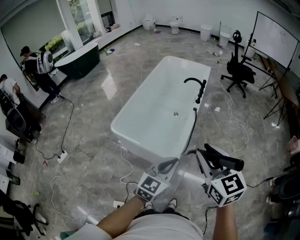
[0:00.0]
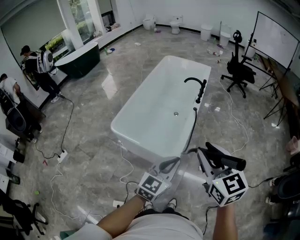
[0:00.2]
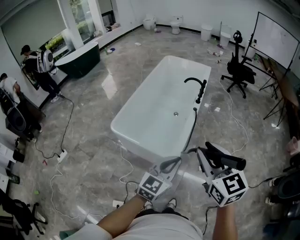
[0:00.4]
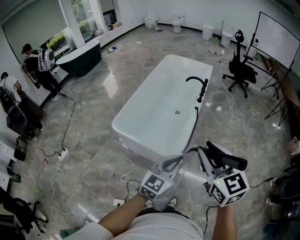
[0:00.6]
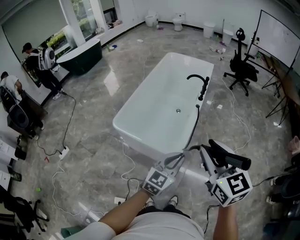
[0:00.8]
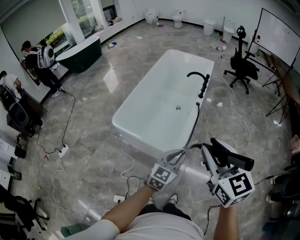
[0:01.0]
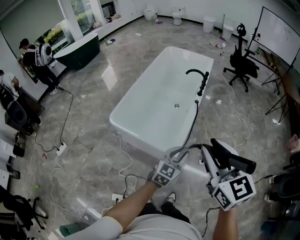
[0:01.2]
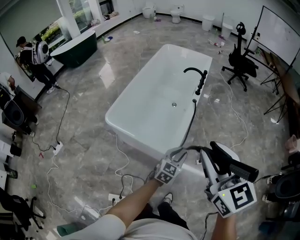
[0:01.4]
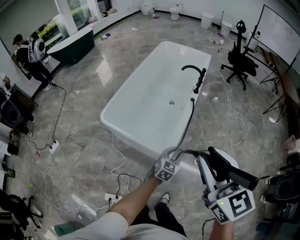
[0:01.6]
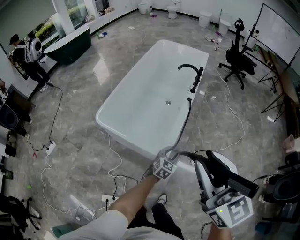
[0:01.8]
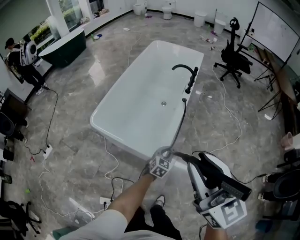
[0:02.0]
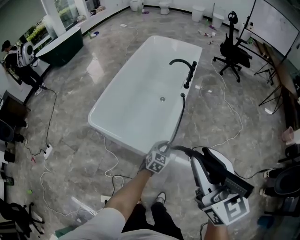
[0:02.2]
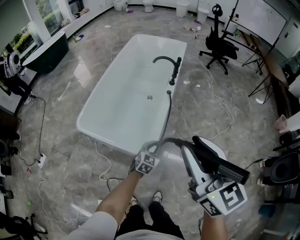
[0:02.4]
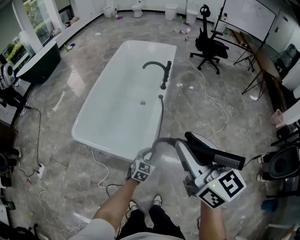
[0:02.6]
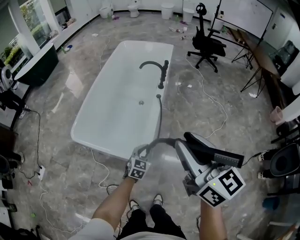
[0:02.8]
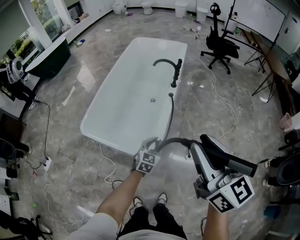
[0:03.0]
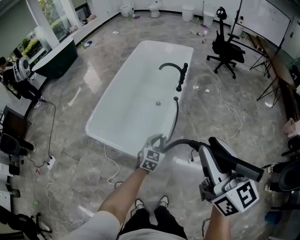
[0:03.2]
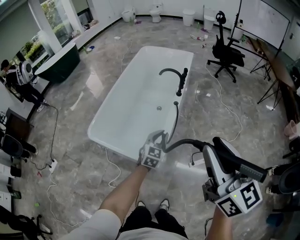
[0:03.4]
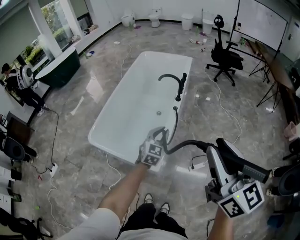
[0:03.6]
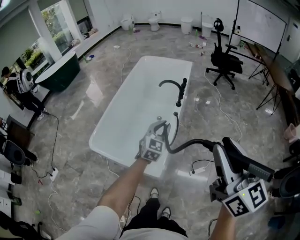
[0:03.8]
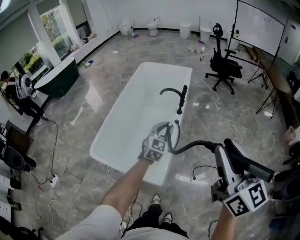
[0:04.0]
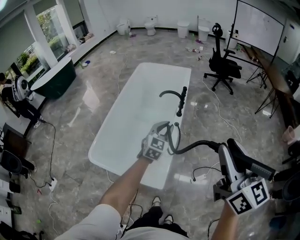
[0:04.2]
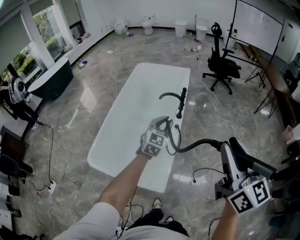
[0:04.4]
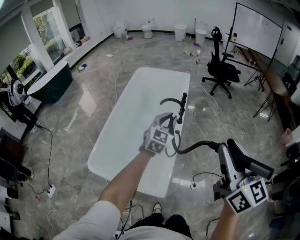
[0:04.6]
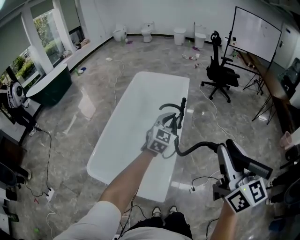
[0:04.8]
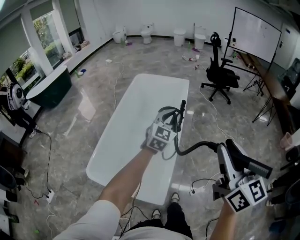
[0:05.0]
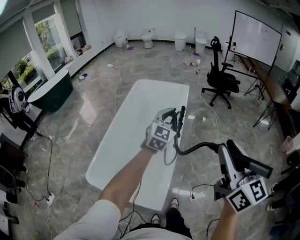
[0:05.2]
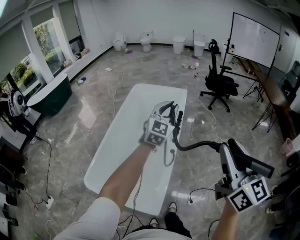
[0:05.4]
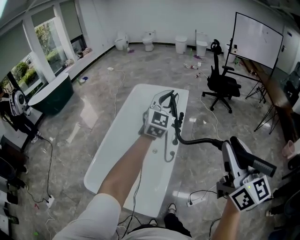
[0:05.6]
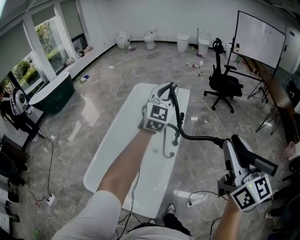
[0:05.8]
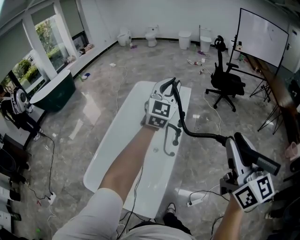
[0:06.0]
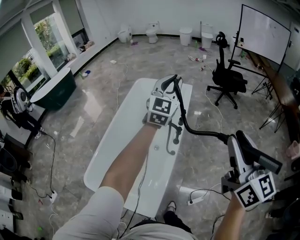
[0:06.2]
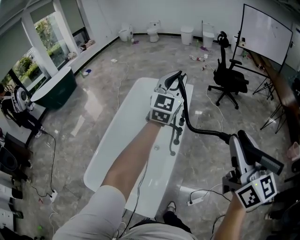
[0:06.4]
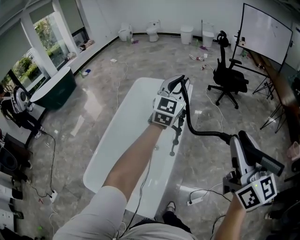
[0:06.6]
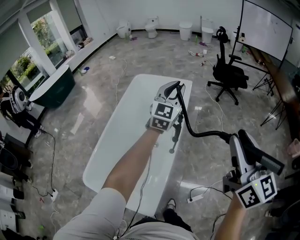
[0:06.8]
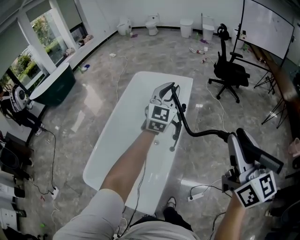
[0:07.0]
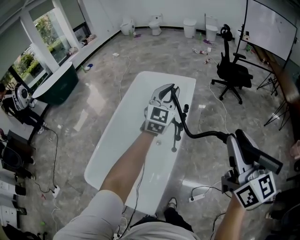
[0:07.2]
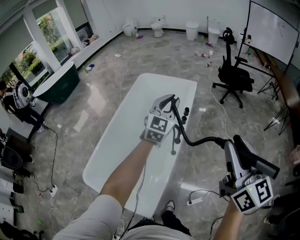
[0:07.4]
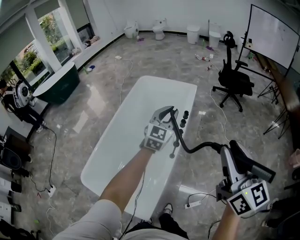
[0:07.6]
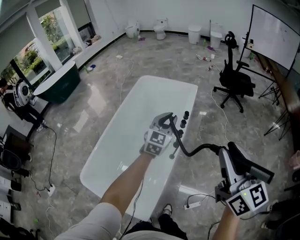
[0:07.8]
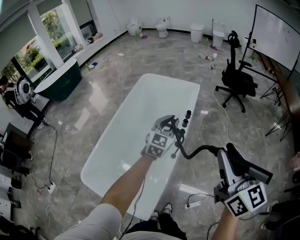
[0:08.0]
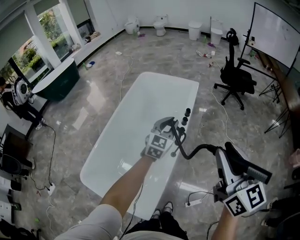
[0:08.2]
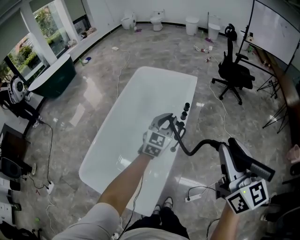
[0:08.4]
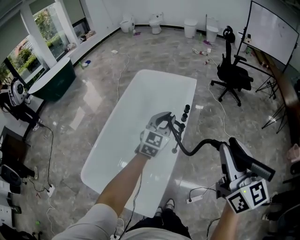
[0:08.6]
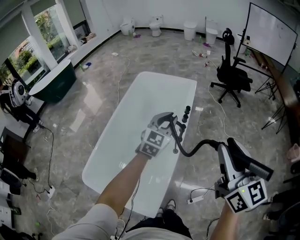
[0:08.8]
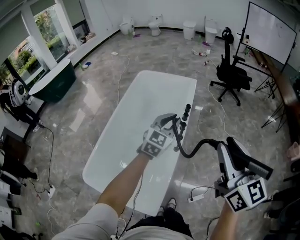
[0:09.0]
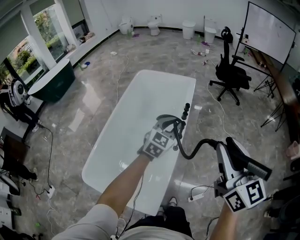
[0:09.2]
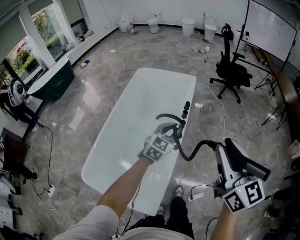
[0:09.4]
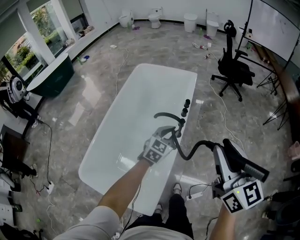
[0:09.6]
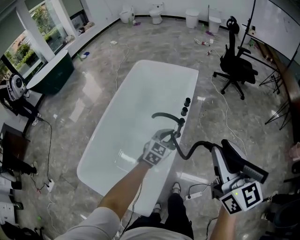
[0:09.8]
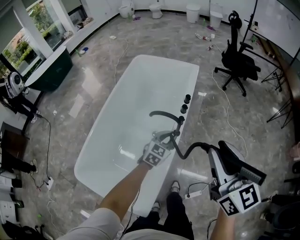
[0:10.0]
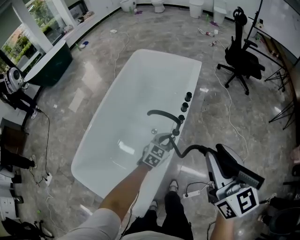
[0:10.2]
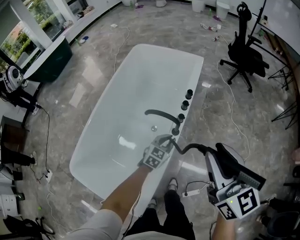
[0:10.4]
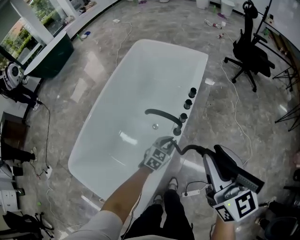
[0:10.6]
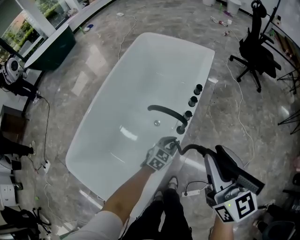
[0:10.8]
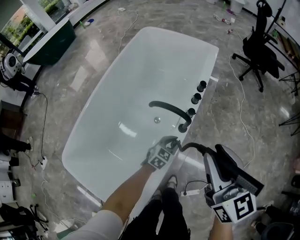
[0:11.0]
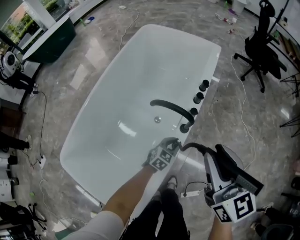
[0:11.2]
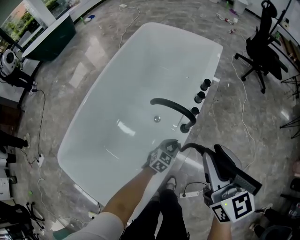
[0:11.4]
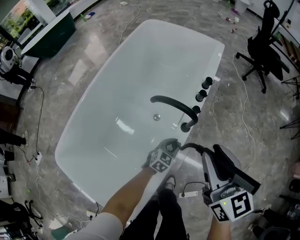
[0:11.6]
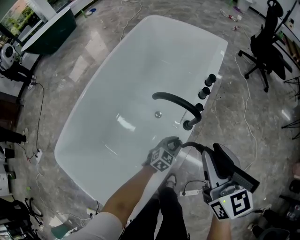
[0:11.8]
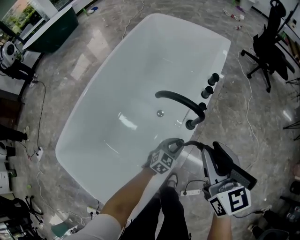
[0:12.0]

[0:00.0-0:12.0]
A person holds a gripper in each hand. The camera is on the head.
0:00.0 to 0:01.6: The left gripper heads downward and forward, covering some 25 cm, and opens up.
0:01.6 to 0:03.0: The left gripper moves forward, approximately 10 cm. Meanwhile the right gripper travels to the right and forward by roughly 10 cm.
0:03.0 to 0:04.4: The right gripper shifts about 15 cm forward and upward. The left gripper heads forward and upward, covering approximately 30 cm.
0:04.4 to 0:06.0: The right gripper shifts some 20 cm forward, while the left gripper shifts about 35 cm upward and forward, and swivels about 20 degrees.
0:06.0 to 0:07.6: The right gripper is displaced forward and downward by roughly 10 cm; the left gripper goes roughly 15 cm downward.
0:07.6 to 0:09.0: The right gripper travels to the left by some 5 cm. Meanwhile the left gripper travels backward by approximately 5 cm.
0:09.0 to 0:10.4: The right gripper moves forward and downward, some 20 cm; the left gripper moves downward, some 30 cm, and changes its angle by some 20 degrees.
0:10.4 to 0:12.0: The grippers both shift downward by roughly 20 cm.

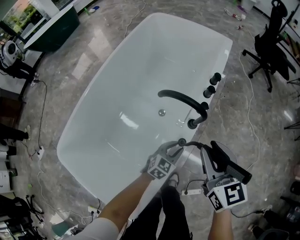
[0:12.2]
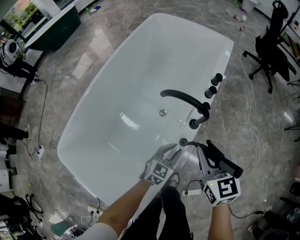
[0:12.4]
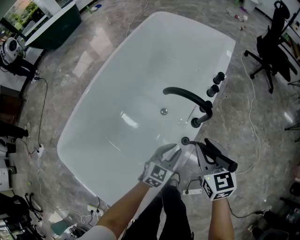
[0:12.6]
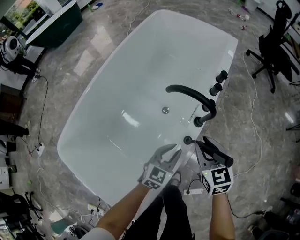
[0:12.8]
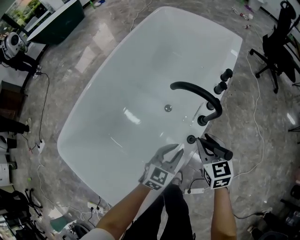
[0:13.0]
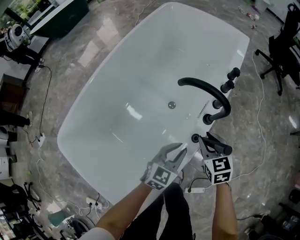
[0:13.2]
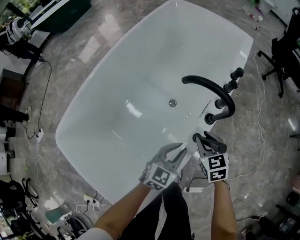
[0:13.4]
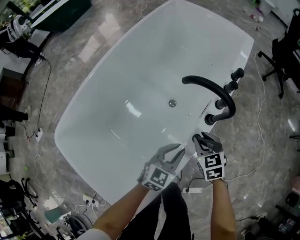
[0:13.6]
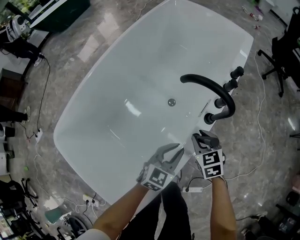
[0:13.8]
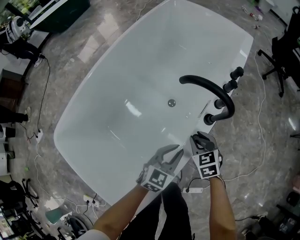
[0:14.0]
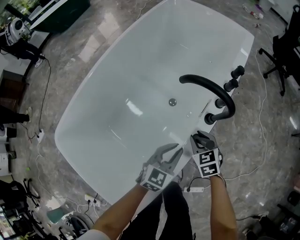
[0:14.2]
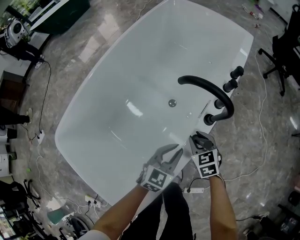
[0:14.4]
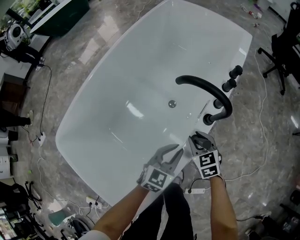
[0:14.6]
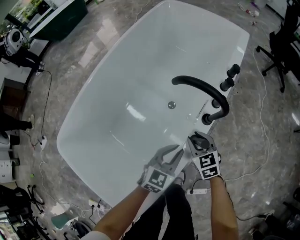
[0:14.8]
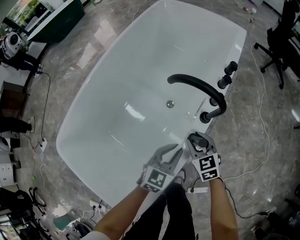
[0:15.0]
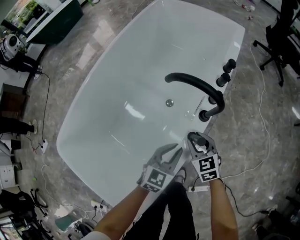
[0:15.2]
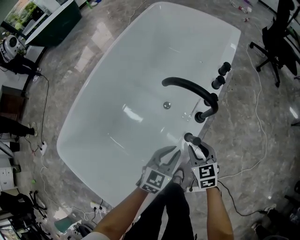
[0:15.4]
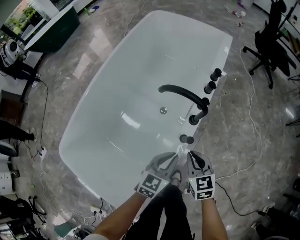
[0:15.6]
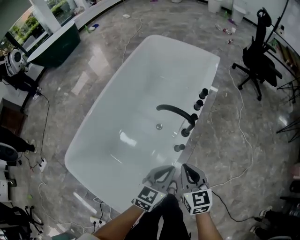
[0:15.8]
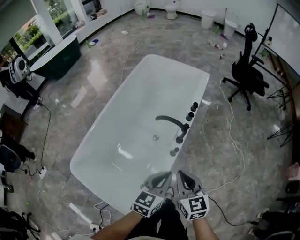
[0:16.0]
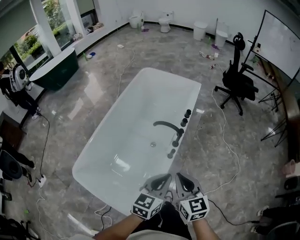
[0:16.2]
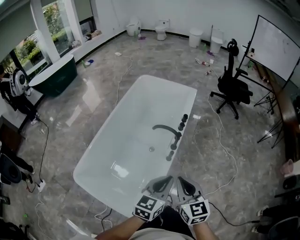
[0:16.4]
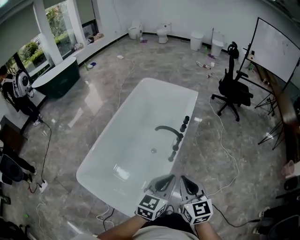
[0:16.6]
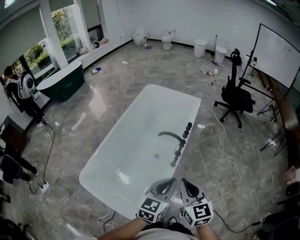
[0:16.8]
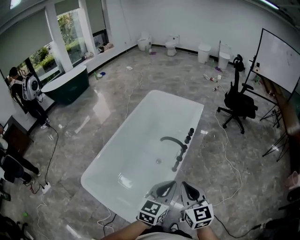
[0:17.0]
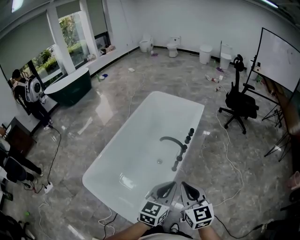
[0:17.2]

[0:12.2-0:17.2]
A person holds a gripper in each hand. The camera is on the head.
0:12.2 to 0:13.8: The left gripper travels to the left by approximately 5 cm. Meanwhile the right gripper shifts approximately 25 cm downward, and swivels about 30 degrees.
0:13.8 to 0:15.6: The left gripper shifts some 5 cm upward. The right gripper travels backward and upward by about 10 cm, and closes up.
0:15.6 to 0:17.2: The right gripper goes about 40 cm upward and backward, and turns by about 20 degrees, while the left gripper travels upward by roughly 35 cm.

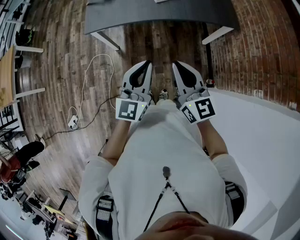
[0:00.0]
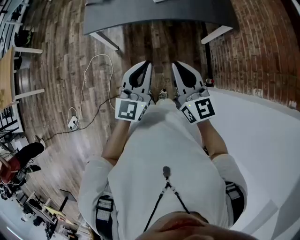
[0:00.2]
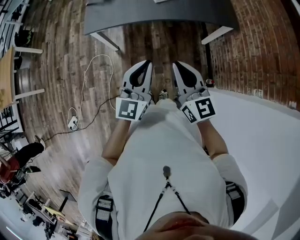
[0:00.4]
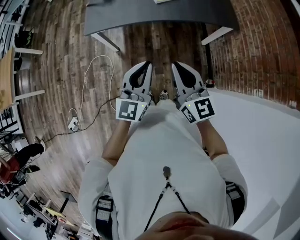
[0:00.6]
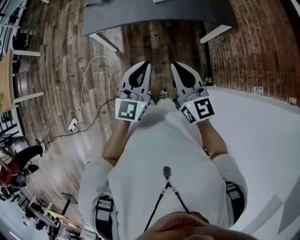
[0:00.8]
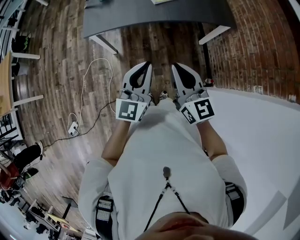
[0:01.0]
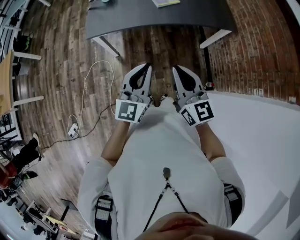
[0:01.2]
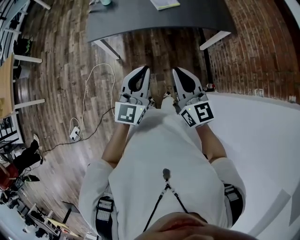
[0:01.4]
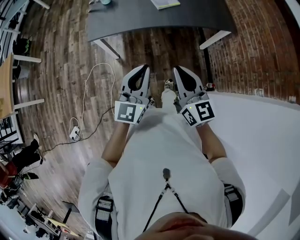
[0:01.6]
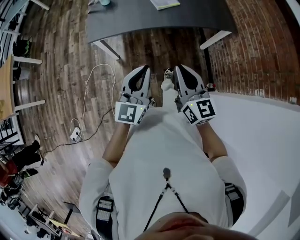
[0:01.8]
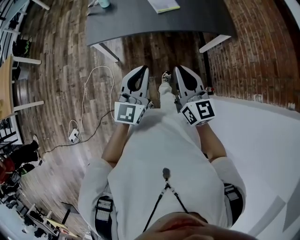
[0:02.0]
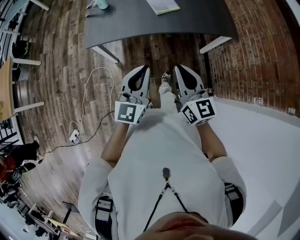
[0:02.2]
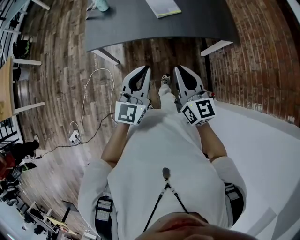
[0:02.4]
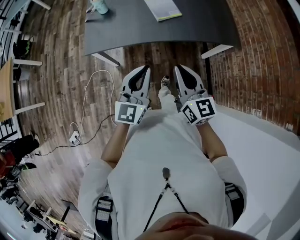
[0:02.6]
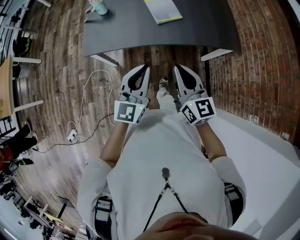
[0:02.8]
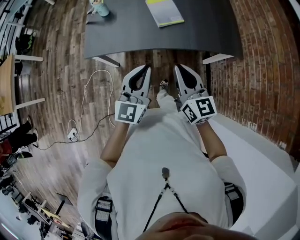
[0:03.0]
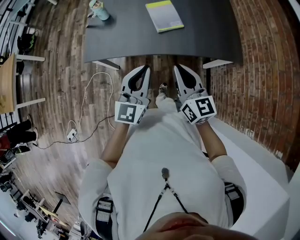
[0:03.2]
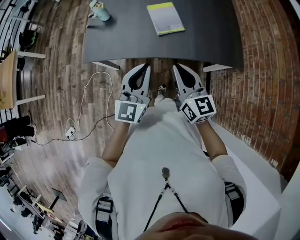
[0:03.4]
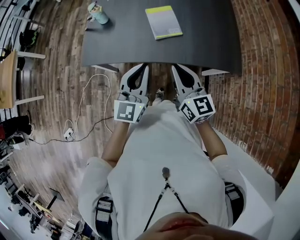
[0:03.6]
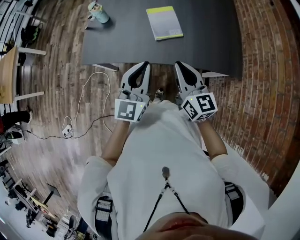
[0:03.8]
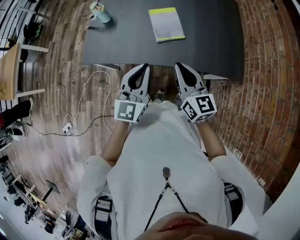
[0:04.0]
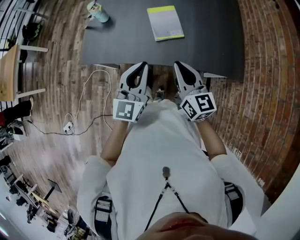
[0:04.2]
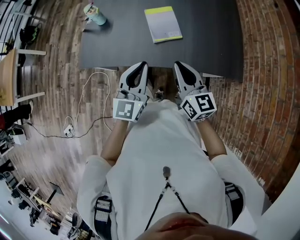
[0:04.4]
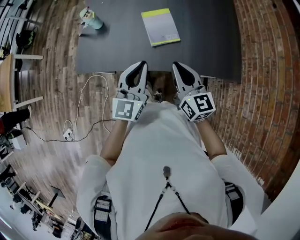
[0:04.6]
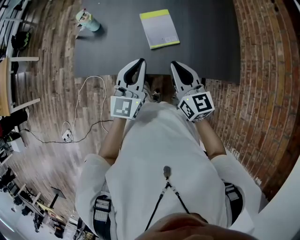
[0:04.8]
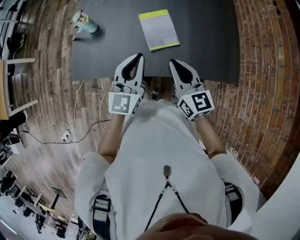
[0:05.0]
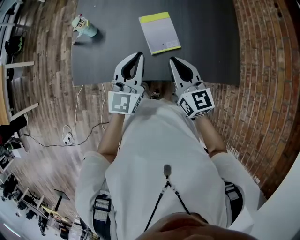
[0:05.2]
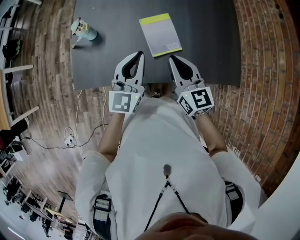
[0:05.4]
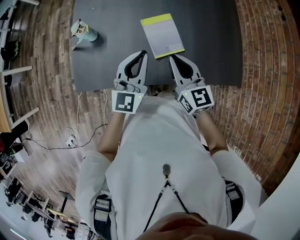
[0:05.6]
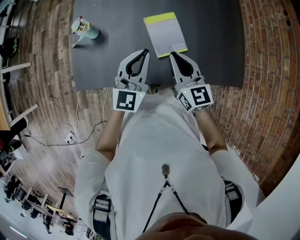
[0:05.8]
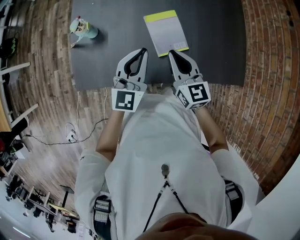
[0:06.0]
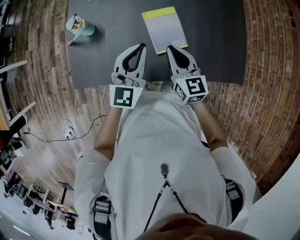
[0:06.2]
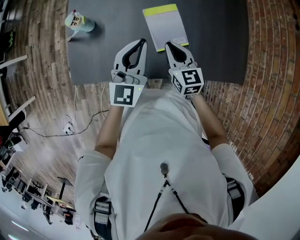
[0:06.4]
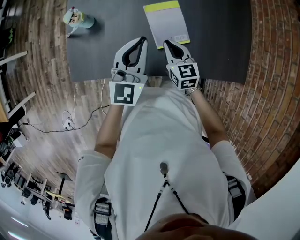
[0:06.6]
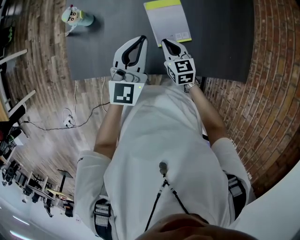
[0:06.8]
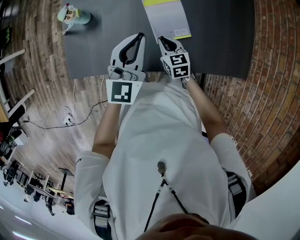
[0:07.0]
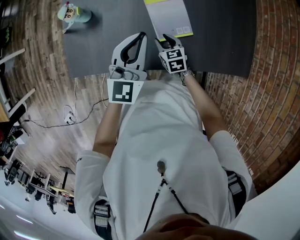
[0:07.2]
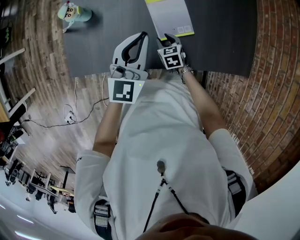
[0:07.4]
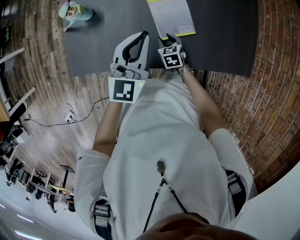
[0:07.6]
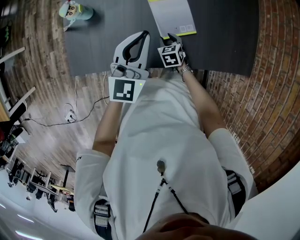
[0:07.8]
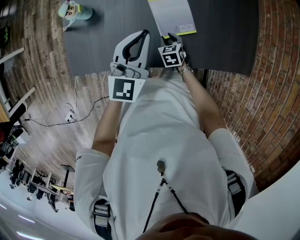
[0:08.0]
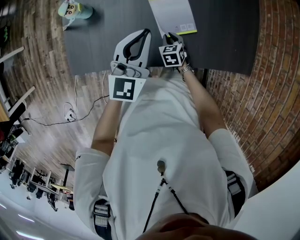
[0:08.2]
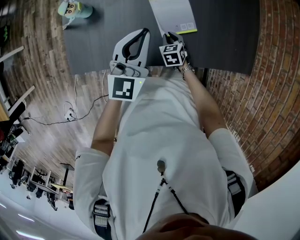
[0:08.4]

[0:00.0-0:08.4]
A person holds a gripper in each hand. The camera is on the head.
0:00.0 to 0:01.4: The grippers both shift to the left by roughly 5 cm.
0:01.4 to 0:02.8: Both grippers move forward, approximately 20 cm.
0:02.8 to 0:04.2: The grippers both shift forward and to the right by some 20 cm.
0:04.2 to 0:05.6: Both grippers move forward, about 25 cm.
0:05.6 to 0:07.0: The right gripper is displaced downward by some 25 cm, and changes its angle by about 30 degrees, while the left gripper moves forward and downward, roughly 10 cm.
0:07.0 to 0:08.4: The right gripper is displaced downward by about 10 cm, changes its angle by roughly 20 degrees, and opens, then closes again.
